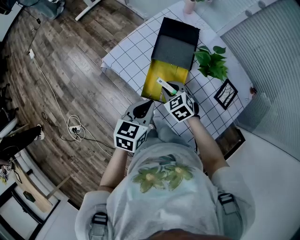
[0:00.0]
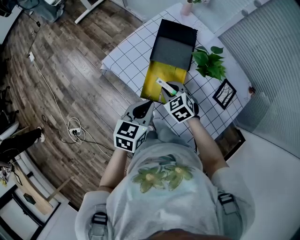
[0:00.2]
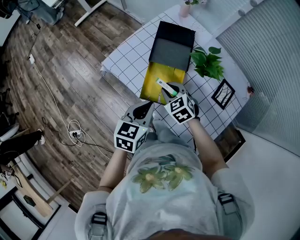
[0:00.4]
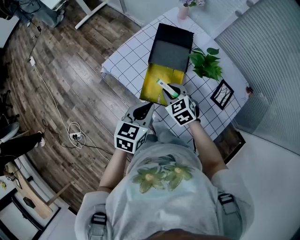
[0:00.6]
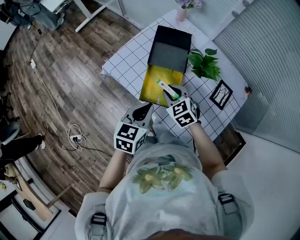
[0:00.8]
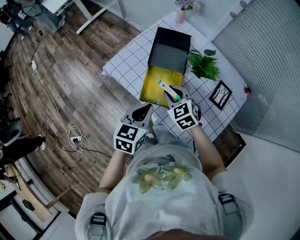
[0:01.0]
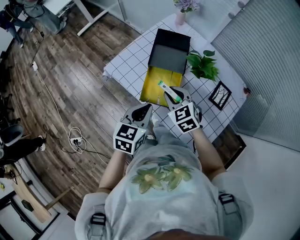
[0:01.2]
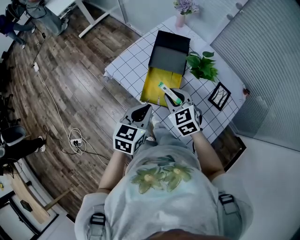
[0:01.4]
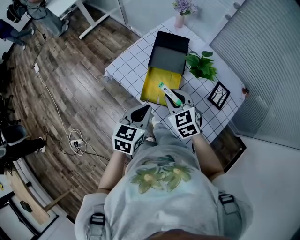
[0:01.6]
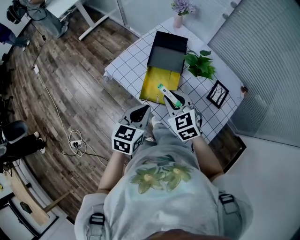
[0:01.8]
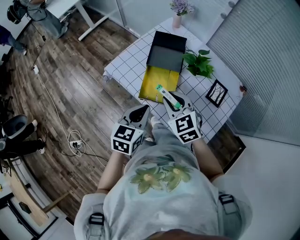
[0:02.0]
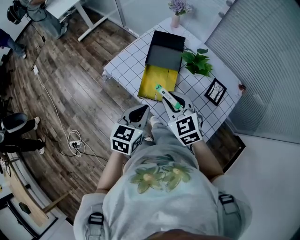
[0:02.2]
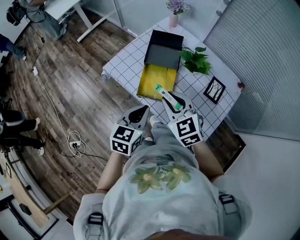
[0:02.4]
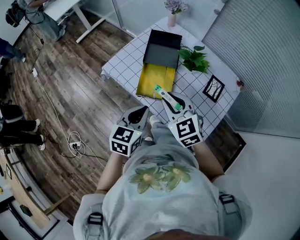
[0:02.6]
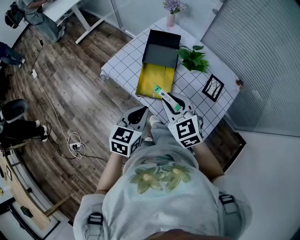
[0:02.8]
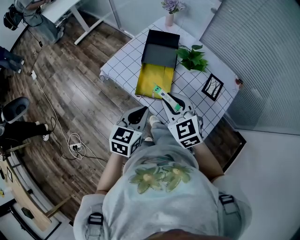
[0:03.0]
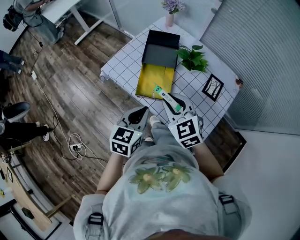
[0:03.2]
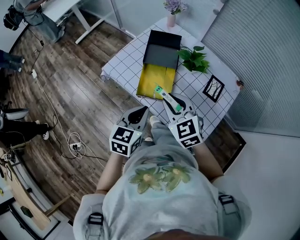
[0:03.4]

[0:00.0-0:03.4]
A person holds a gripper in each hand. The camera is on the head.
0:00.0 to 0:01.6: The left gripper moves some 5 cm. The right gripper is displaced upward by roughly 15 cm.
0:01.6 to 0:03.4: The right gripper shifts approximately 10 cm backward and upward.

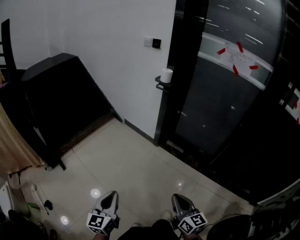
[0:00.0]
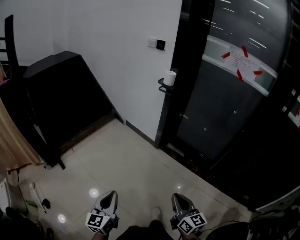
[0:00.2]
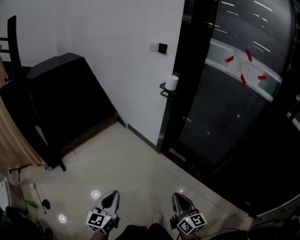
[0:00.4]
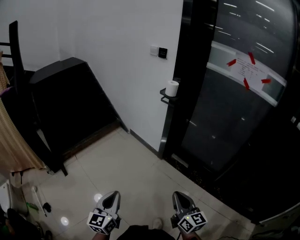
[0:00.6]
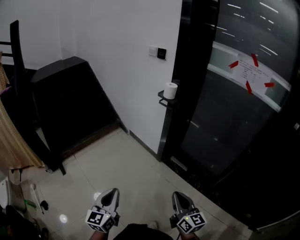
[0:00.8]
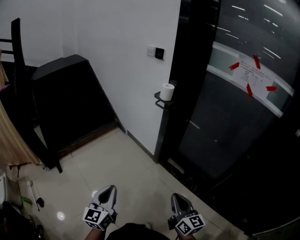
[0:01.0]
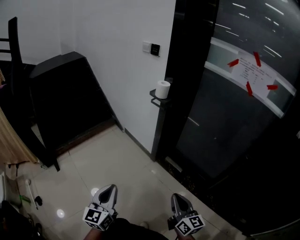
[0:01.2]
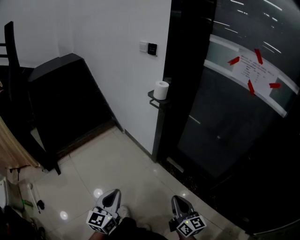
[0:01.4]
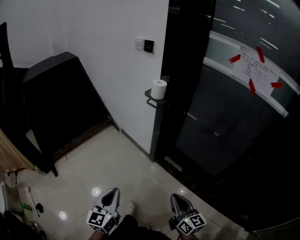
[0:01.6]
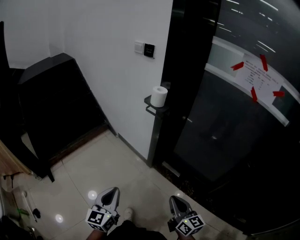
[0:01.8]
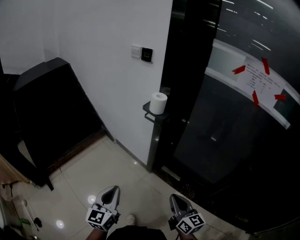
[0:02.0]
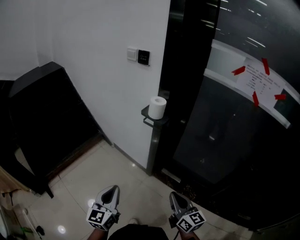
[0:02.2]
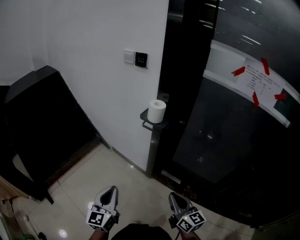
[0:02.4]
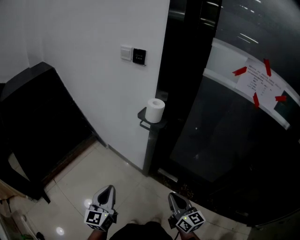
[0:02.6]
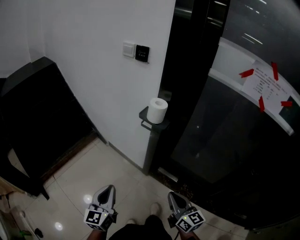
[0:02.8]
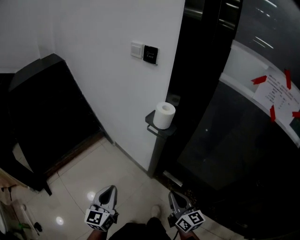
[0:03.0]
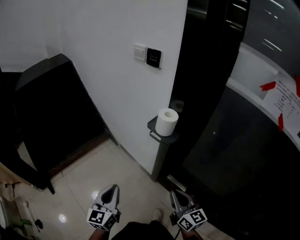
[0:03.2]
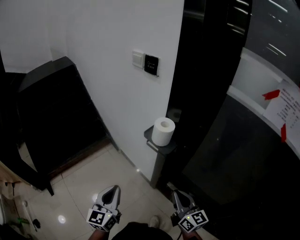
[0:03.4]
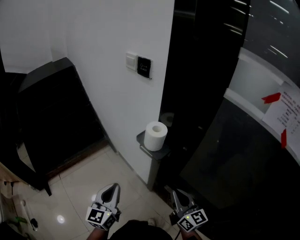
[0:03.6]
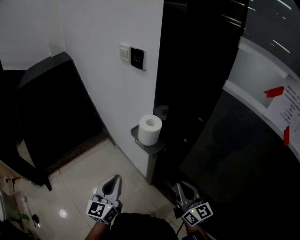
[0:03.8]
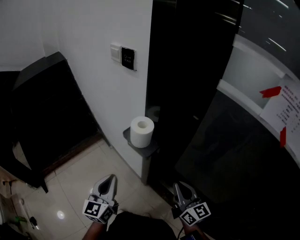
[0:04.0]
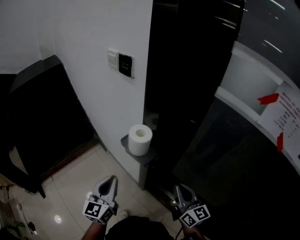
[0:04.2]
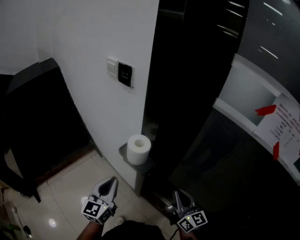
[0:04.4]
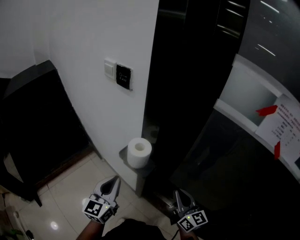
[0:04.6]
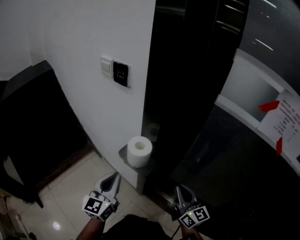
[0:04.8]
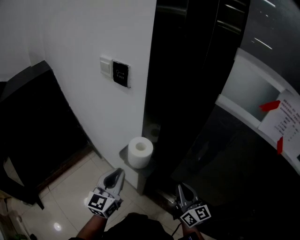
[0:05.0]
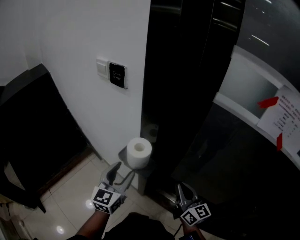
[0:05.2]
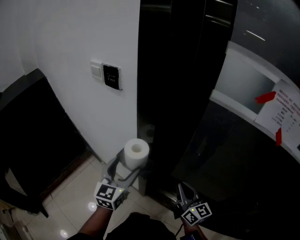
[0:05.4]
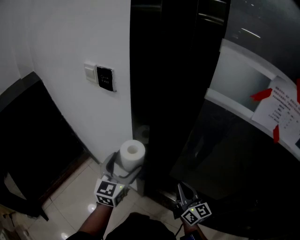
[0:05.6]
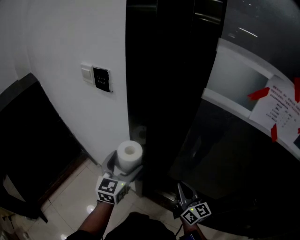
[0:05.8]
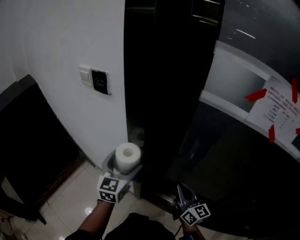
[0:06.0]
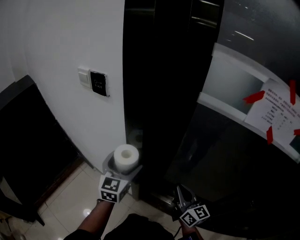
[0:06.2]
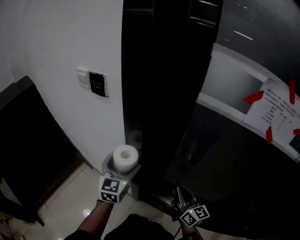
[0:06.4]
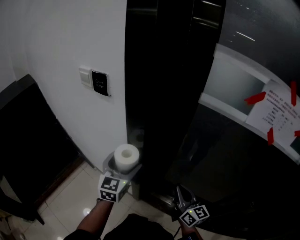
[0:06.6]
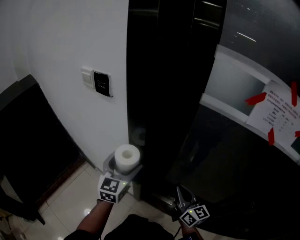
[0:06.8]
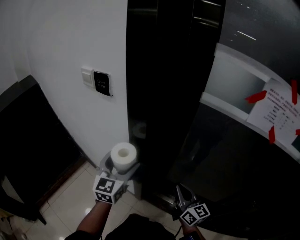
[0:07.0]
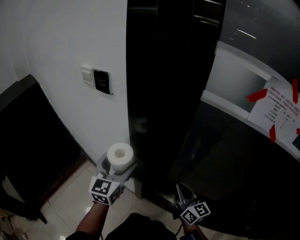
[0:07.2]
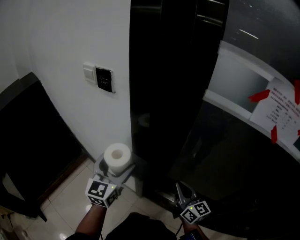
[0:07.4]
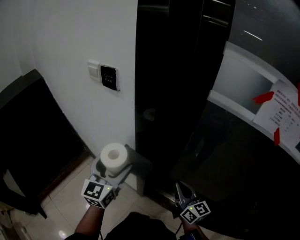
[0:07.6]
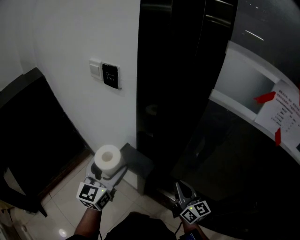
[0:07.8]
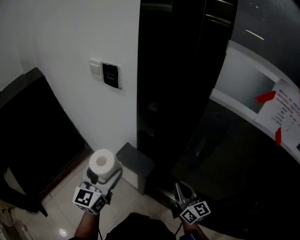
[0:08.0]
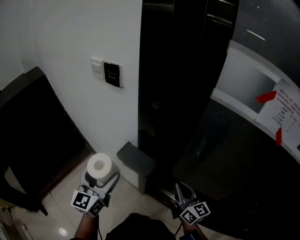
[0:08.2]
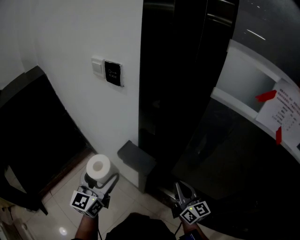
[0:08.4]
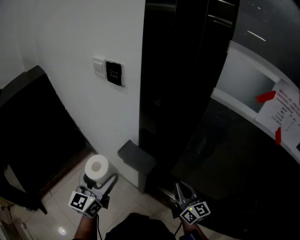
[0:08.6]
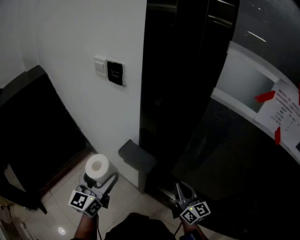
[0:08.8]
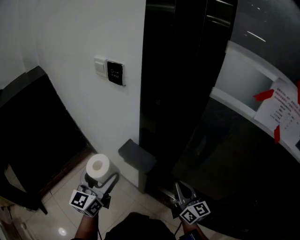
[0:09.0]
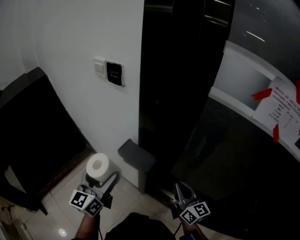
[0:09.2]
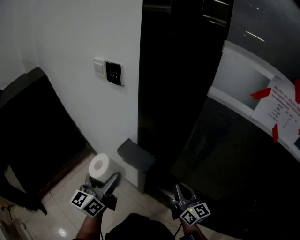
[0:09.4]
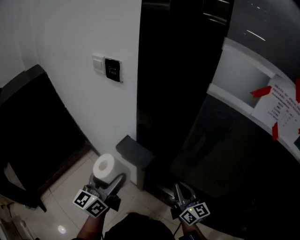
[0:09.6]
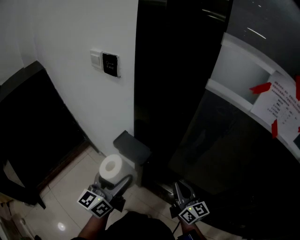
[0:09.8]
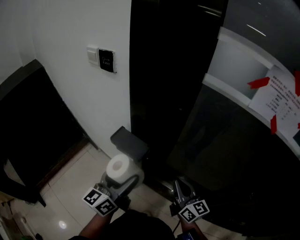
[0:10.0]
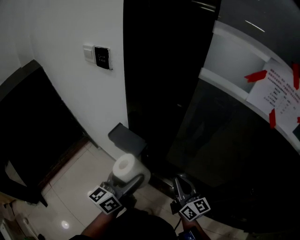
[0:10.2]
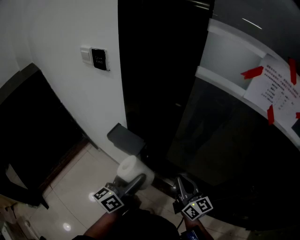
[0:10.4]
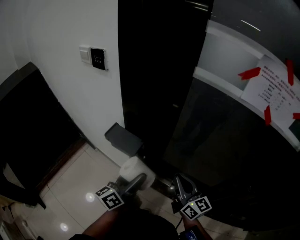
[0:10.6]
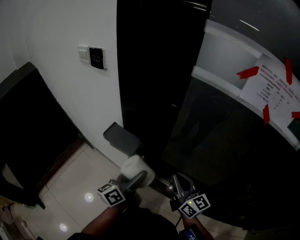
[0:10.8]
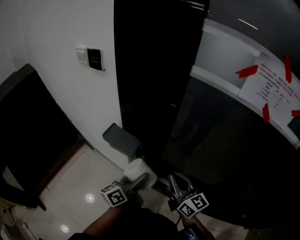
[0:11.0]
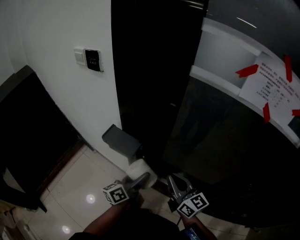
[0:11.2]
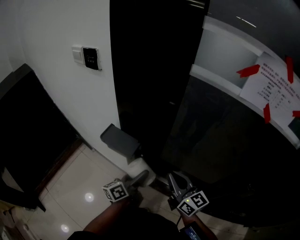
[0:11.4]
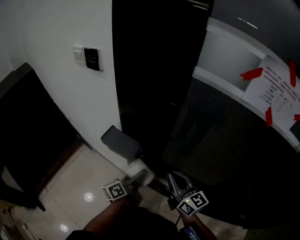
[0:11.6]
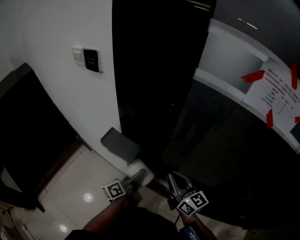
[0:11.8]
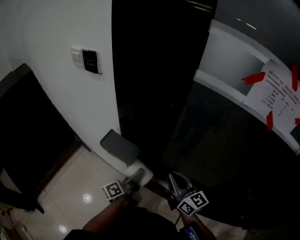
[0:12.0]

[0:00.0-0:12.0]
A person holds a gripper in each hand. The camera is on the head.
0:00.0 to 0:01.6: Both grippers travel together forward and to the right, about 30 cm.
0:01.6 to 0:03.0: The grippers both shift forward by about 25 cm.
0:03.0 to 0:04.4: Both grippers travel together forward and to the right, roughly 25 cm.
0:04.4 to 0:06.0: The left gripper shifts about 15 cm forward and to the right, and opens.
0:06.0 to 0:07.6: The left gripper travels to the left by roughly 5 cm.
0:07.6 to 0:09.0: The left gripper is displaced to the left and backward by approximately 10 cm.
0:09.0 to 0:10.4: The right gripper goes roughly 5 cm backward and to the right. Meanwhile the left gripper travels to the right by about 15 cm, and changes its angle by approximately 40 degrees.
0:10.4 to 0:12.0: The right gripper changes place by approximately 5 cm; the left gripper goes about 15 cm downward and forward, and changes its angle by about 40 degrees.

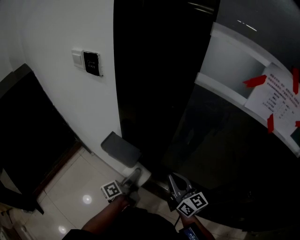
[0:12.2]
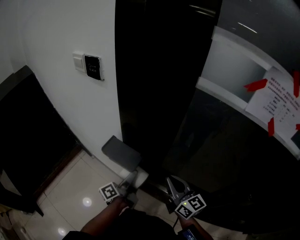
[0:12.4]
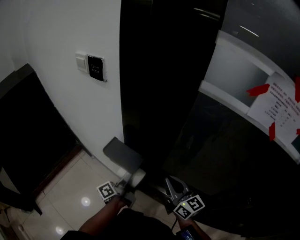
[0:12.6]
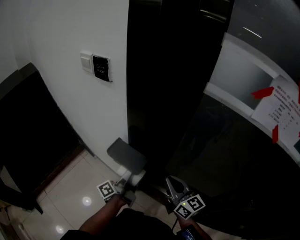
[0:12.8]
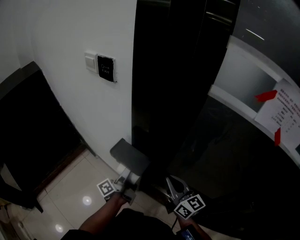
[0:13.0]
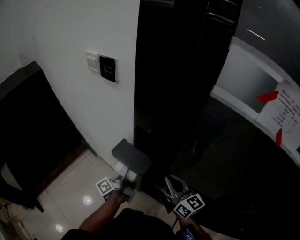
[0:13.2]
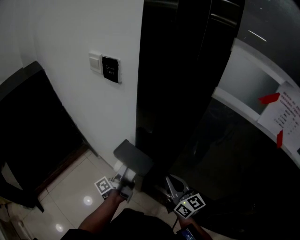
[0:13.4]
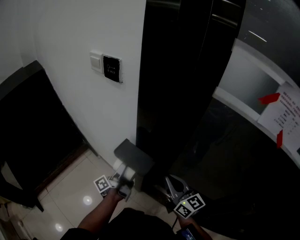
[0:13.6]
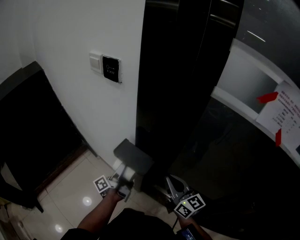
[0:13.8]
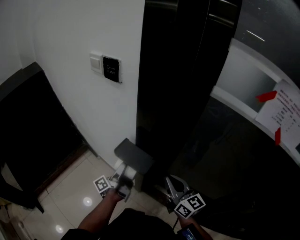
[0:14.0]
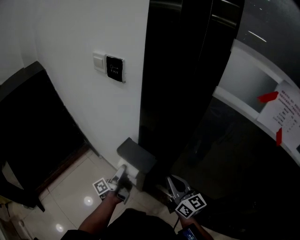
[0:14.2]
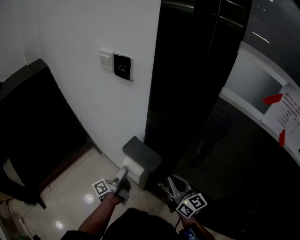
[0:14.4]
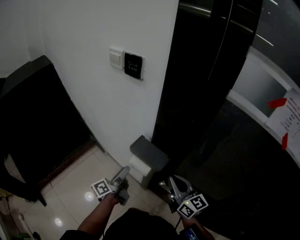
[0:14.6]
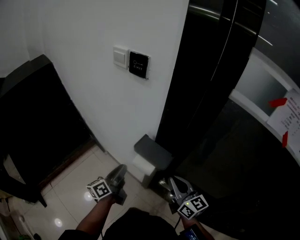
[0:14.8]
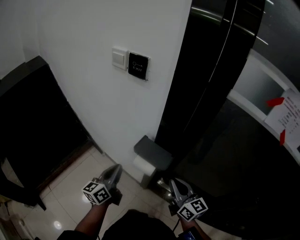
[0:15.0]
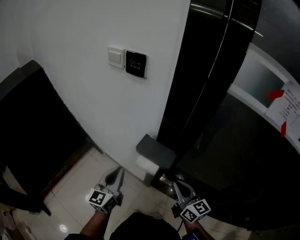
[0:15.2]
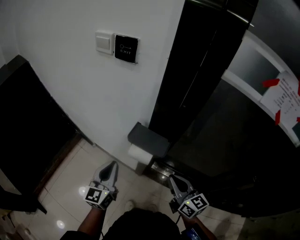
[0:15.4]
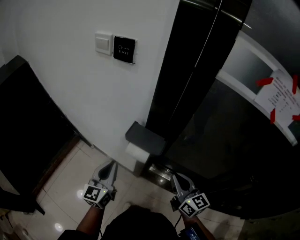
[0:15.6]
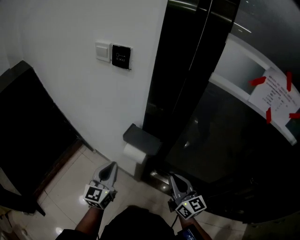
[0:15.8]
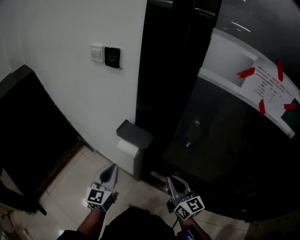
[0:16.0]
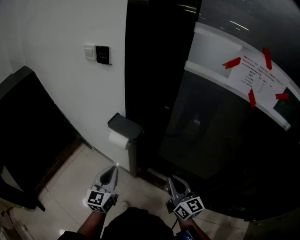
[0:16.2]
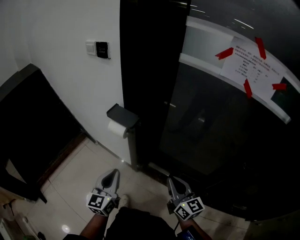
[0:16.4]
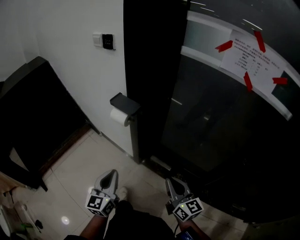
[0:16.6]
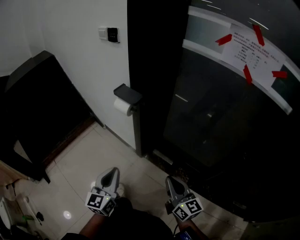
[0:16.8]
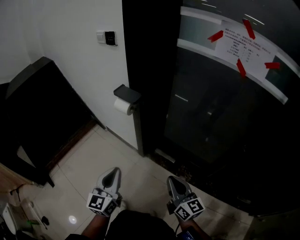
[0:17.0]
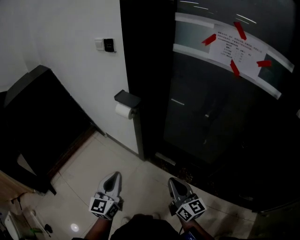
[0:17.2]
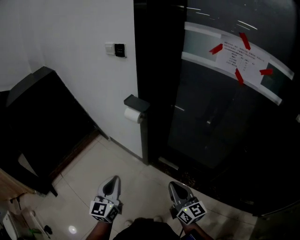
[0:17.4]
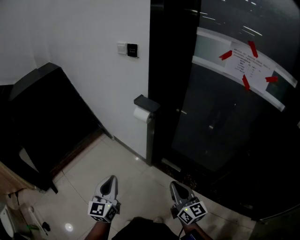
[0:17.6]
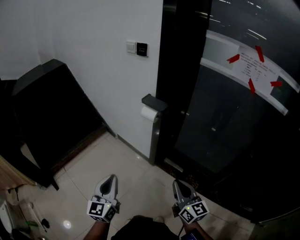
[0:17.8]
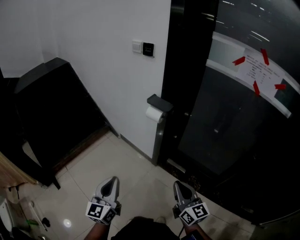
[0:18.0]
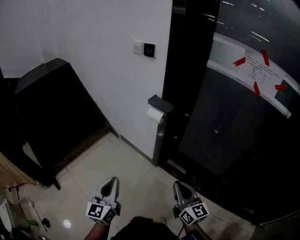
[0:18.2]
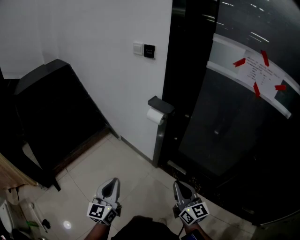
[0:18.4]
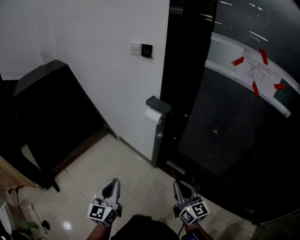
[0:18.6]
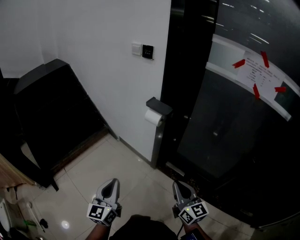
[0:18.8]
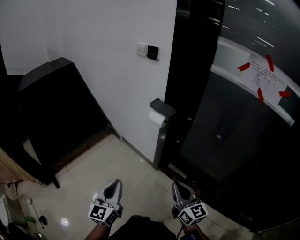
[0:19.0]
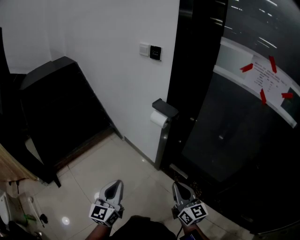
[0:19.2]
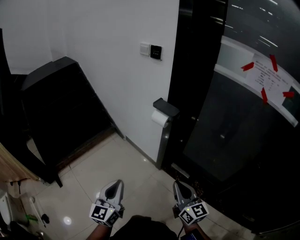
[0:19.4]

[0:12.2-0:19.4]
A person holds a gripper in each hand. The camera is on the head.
0:12.2 to 0:13.6: The left gripper goes about 10 cm to the left and forward, while the right gripper moves to the left, about 5 cm.
0:13.6 to 0:15.0: The right gripper moves to the left, approximately 5 cm. Meanwhile the left gripper shifts approximately 15 cm to the left, upward and backward, rotates around the line of its fingers by about 60 degrees, clockwise from behind, and closes its fingers.
0:15.0 to 0:16.6: Both grippers travel together backward and to the right, roughly 30 cm. The left gripper swivels roughly 30 degrees.
0:16.6 to 0:18.0: Both grippers travel together to the left and backward, roughly 20 cm.
0:18.0 to 0:19.4: The grippers stay close to where they were, moving slightly.

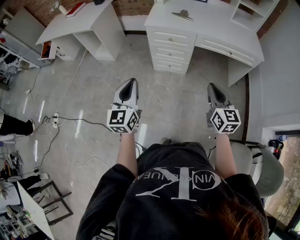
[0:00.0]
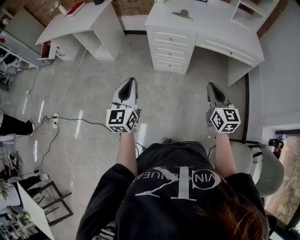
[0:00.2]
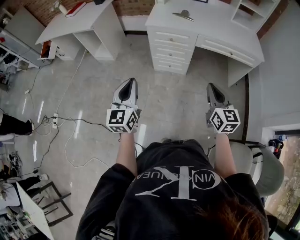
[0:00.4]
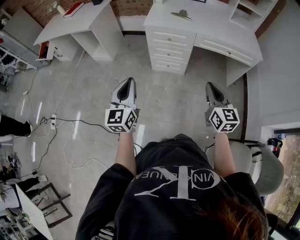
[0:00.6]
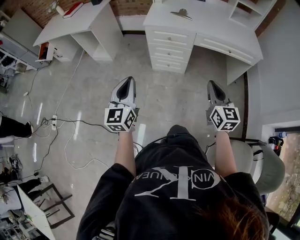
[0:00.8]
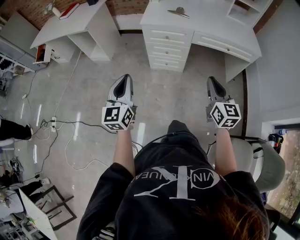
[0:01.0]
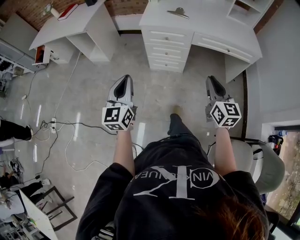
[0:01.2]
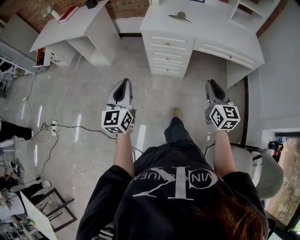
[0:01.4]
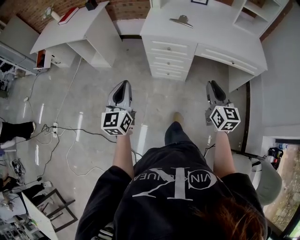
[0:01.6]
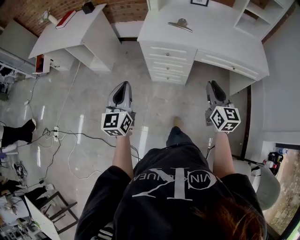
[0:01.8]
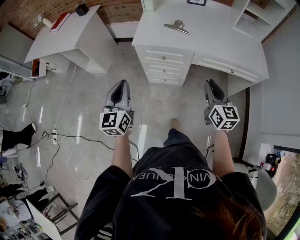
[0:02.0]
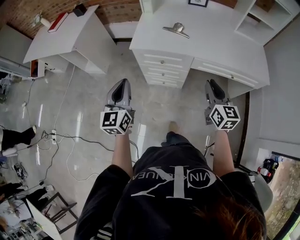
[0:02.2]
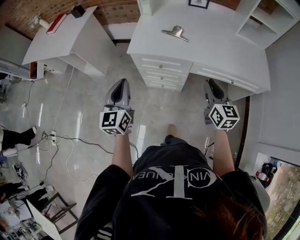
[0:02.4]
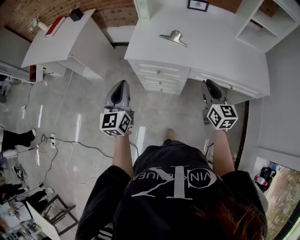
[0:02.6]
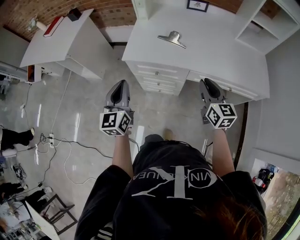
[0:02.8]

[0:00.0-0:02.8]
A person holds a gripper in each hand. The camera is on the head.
0:00.0 to 0:01.4: The two grippers go approximately 5 cm forward.
0:01.4 to 0:02.8: The two grippers go about 30 cm forward.
